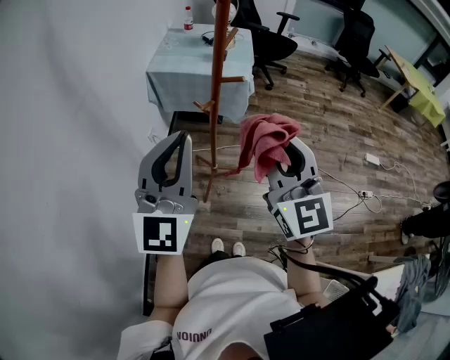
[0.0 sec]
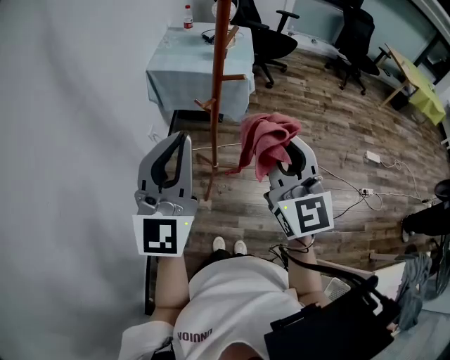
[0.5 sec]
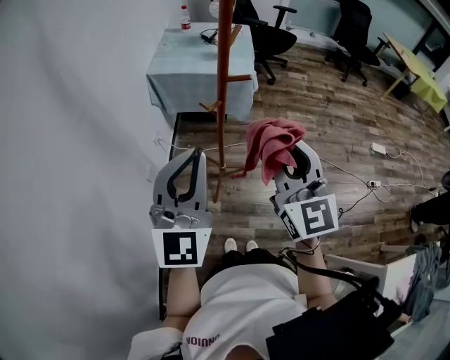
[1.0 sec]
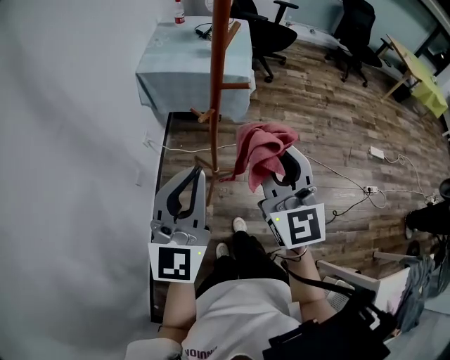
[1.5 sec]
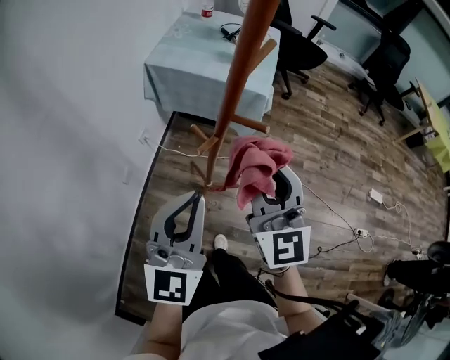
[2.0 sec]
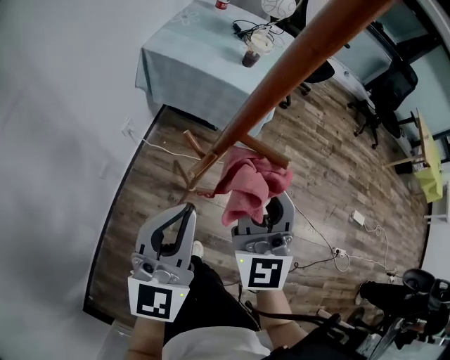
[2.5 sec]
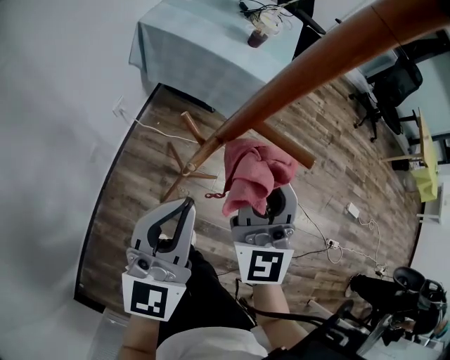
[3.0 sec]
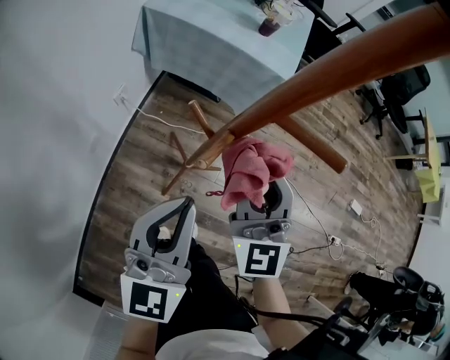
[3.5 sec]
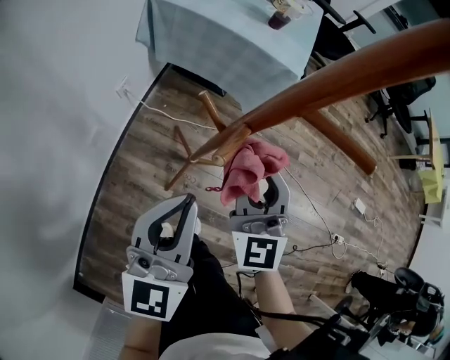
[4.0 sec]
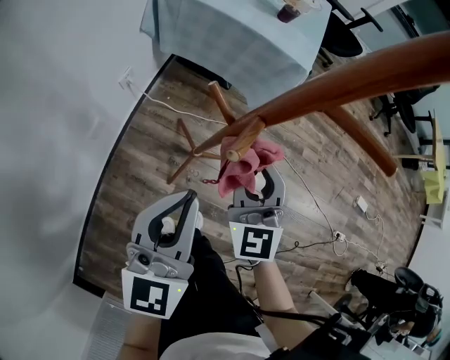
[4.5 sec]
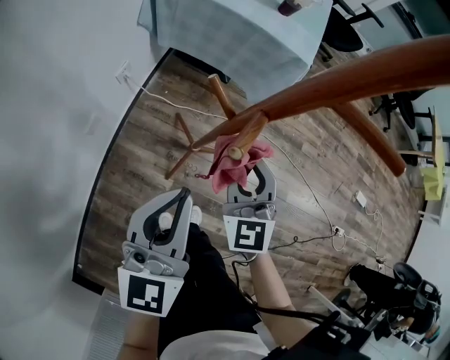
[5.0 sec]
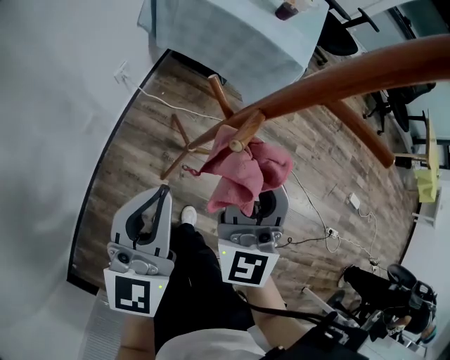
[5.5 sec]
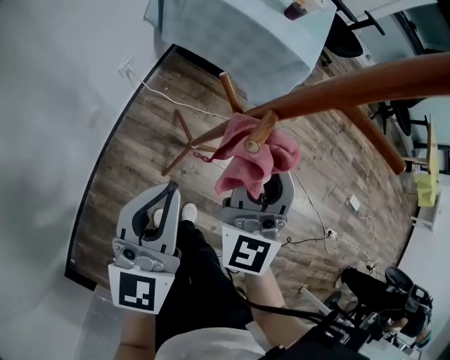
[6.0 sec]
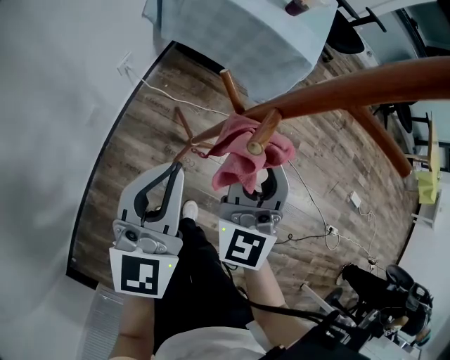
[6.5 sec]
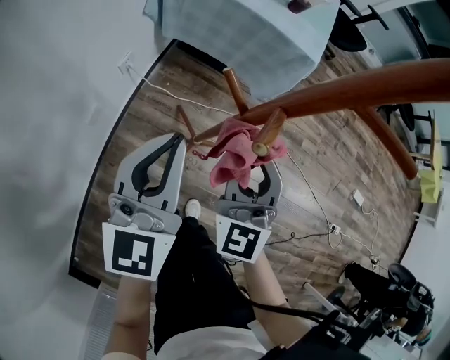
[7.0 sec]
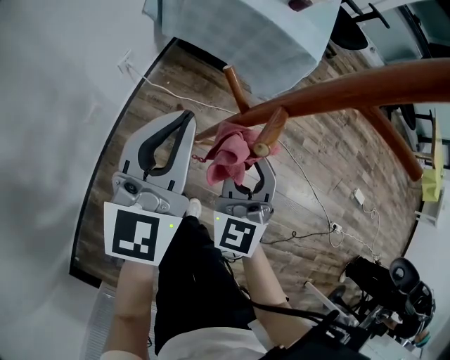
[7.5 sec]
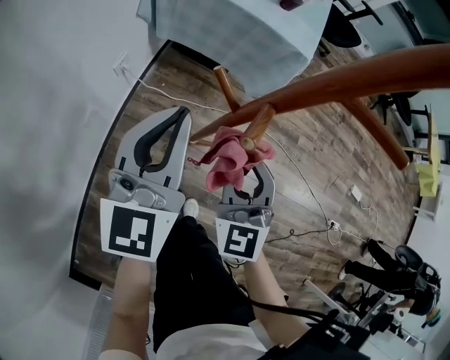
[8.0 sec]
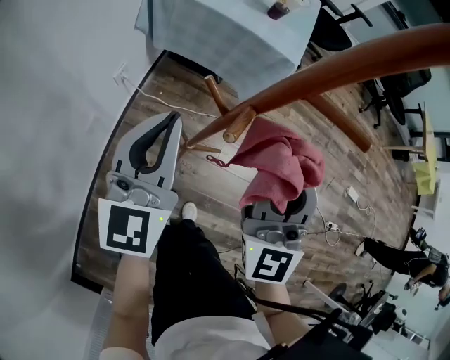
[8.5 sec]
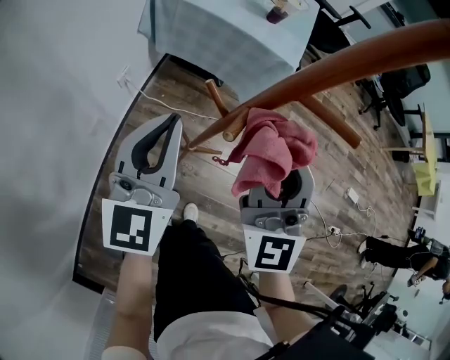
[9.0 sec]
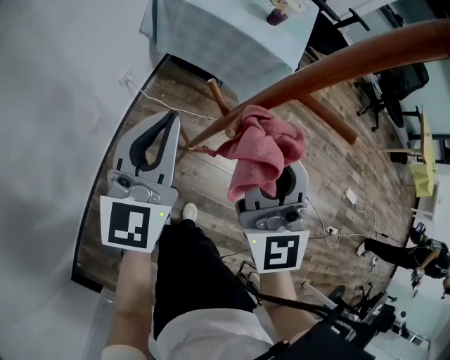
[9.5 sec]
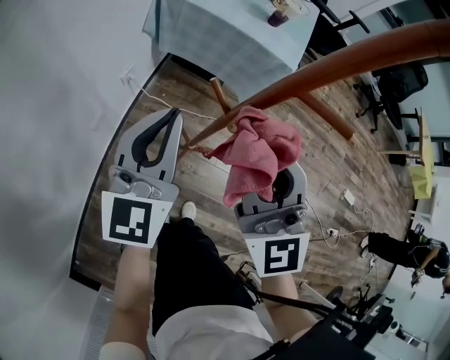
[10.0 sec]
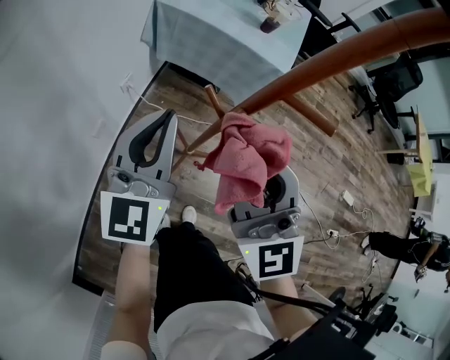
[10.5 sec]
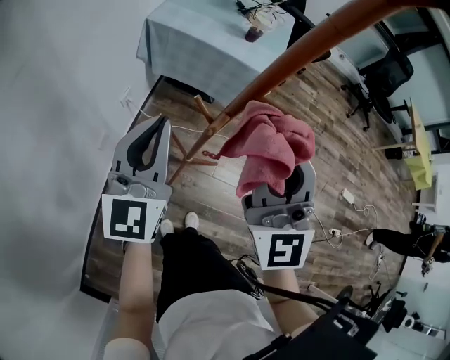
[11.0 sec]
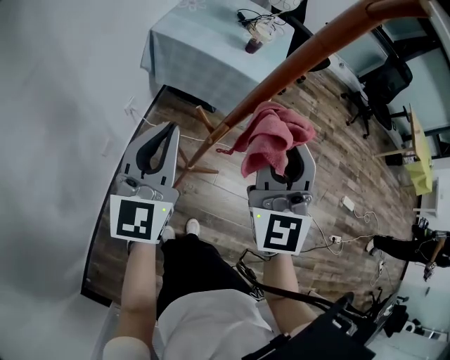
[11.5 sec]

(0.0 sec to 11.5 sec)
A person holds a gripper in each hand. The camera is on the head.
0.0 sec - 2.0 sec: The left gripper moves downward and forward, approximately 15 cm. Meanwhile the right gripper travels forward and downward by some 20 cm.
2.0 sec - 4.0 sec: The two grippers go some 15 cm downward.
4.0 sec - 6.0 sec: The right gripper moves roughly 5 cm downward and comes back.
6.0 sec - 7.5 sec: The right gripper travels downward by some 10 cm, and swivels approximately 20 degrees; the left gripper moves forward, roughly 10 cm.
7.5 sec - 9.5 sec: The right gripper is displaced upward by roughly 20 cm, and rotates some 30 degrees, while the left gripper heads upward, covering roughly 5 cm.
9.5 sec - 11.5 sec: The left gripper shifts approximately 10 cm upward, while the right gripper moves upward and to the right, approximately 10 cm.

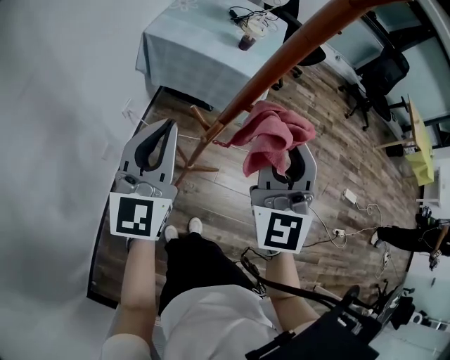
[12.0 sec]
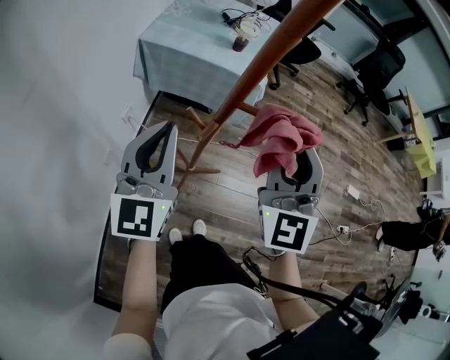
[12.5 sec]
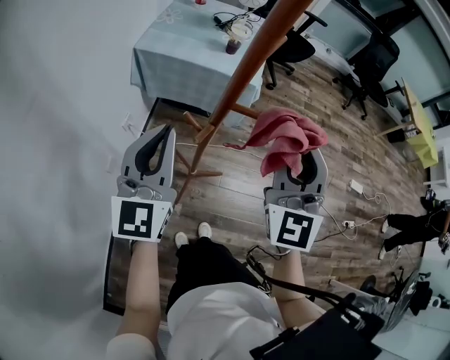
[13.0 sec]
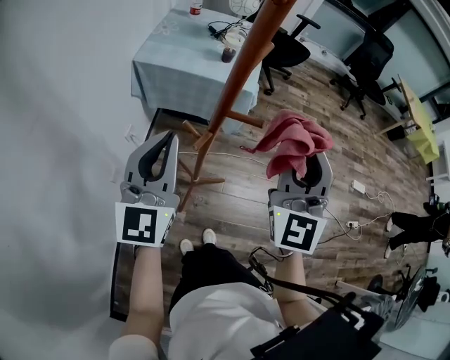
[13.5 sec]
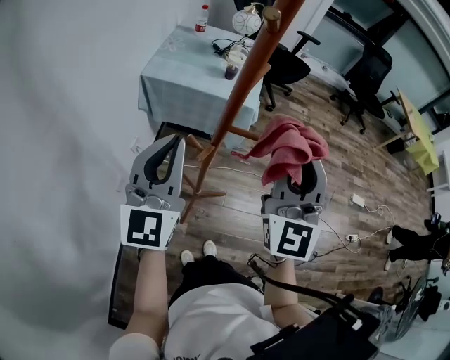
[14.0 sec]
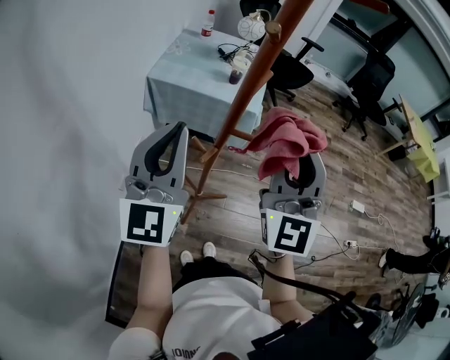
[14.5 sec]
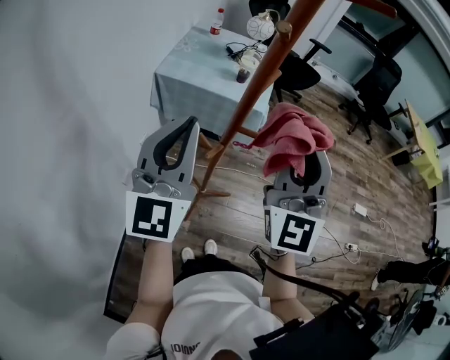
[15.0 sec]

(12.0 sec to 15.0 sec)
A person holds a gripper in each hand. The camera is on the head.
12.0 sec - 13.5 sec: The right gripper moves to the right, roughly 5 cm.
13.5 sec - 15.0 sec: The grippers both shift upward by roughly 10 cm.

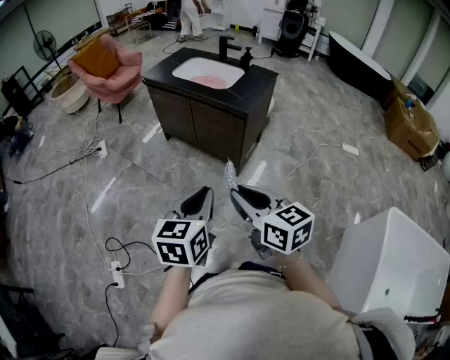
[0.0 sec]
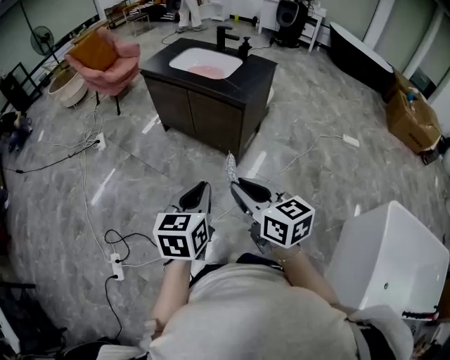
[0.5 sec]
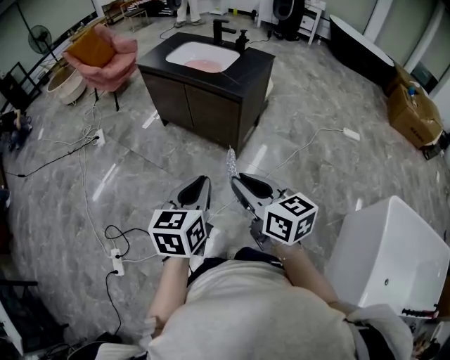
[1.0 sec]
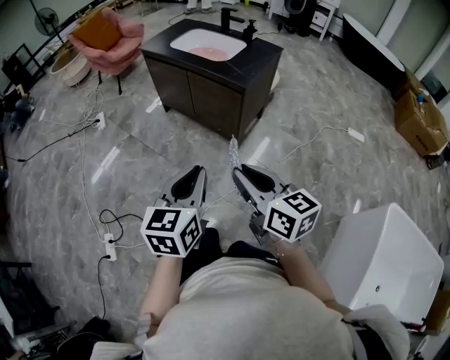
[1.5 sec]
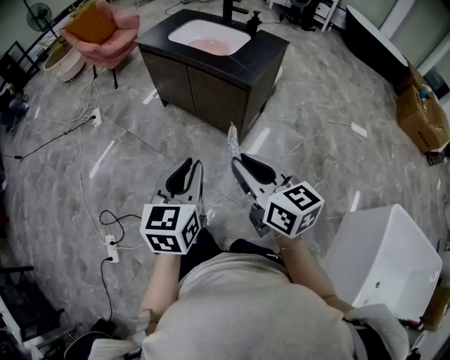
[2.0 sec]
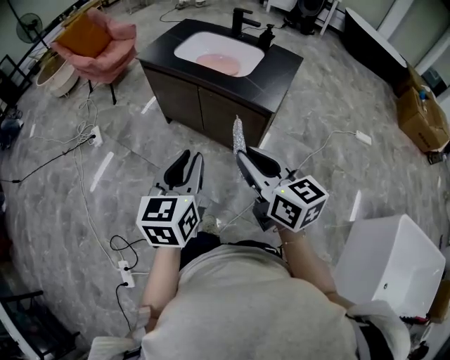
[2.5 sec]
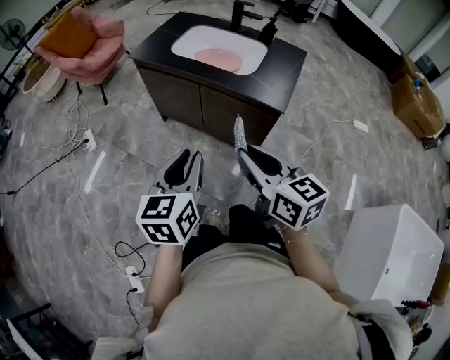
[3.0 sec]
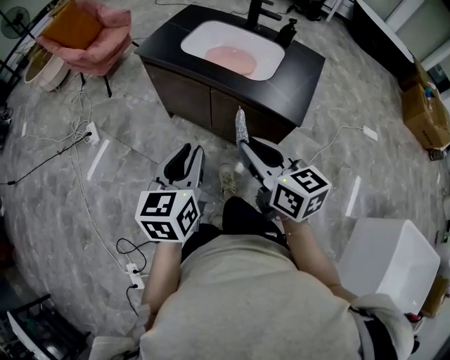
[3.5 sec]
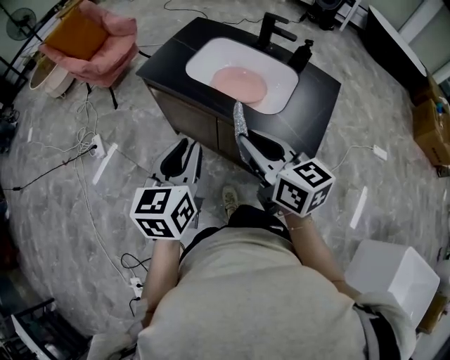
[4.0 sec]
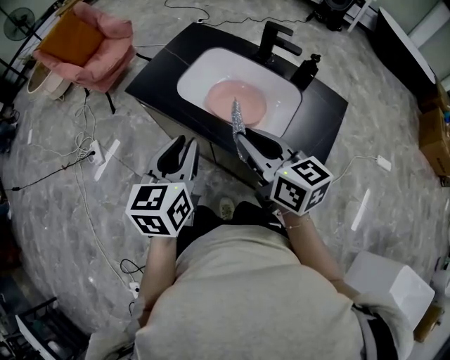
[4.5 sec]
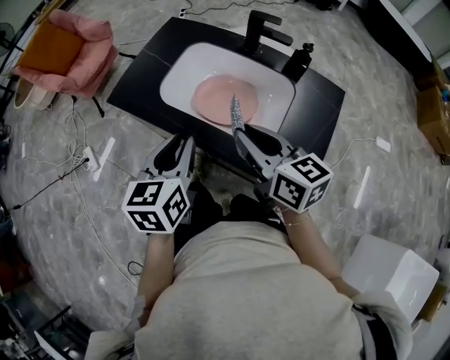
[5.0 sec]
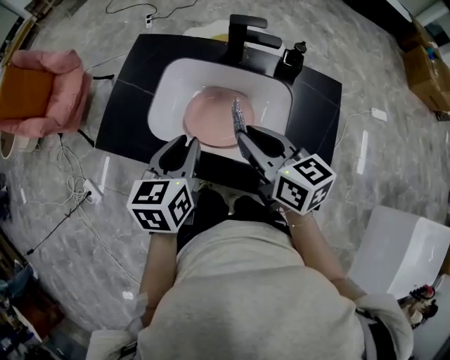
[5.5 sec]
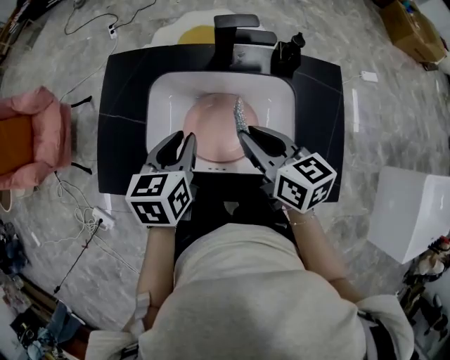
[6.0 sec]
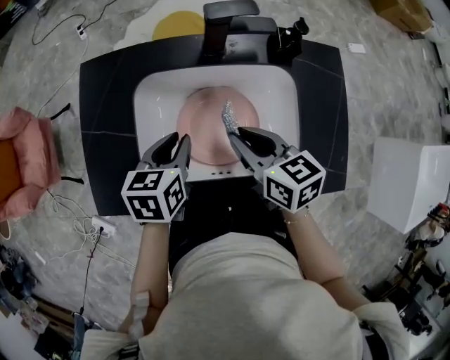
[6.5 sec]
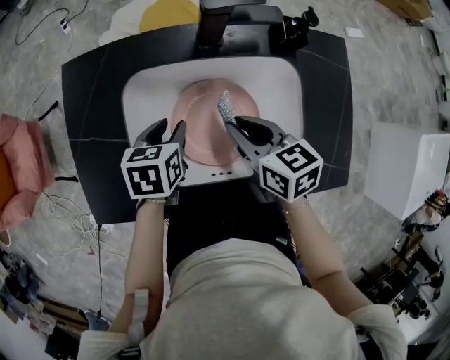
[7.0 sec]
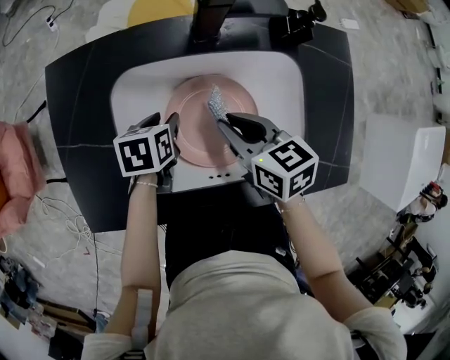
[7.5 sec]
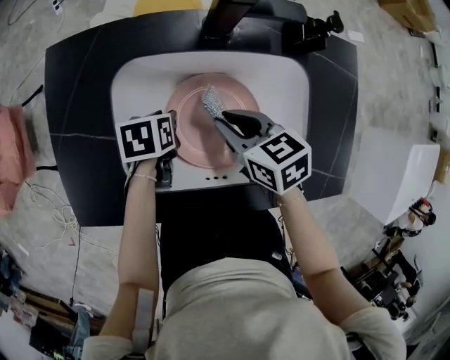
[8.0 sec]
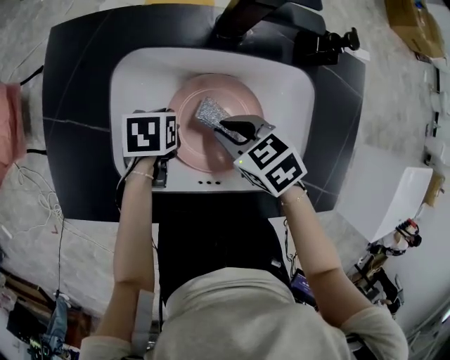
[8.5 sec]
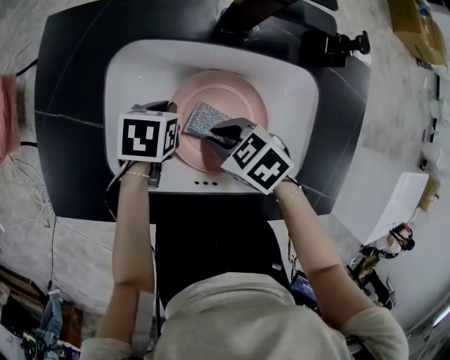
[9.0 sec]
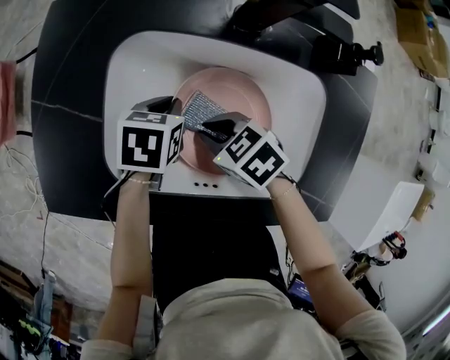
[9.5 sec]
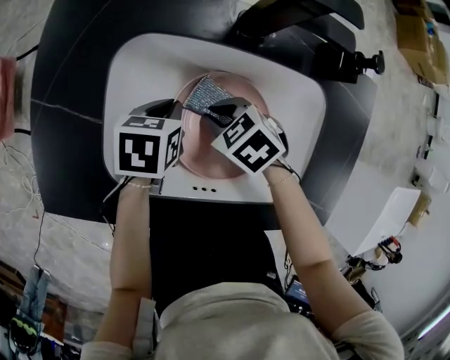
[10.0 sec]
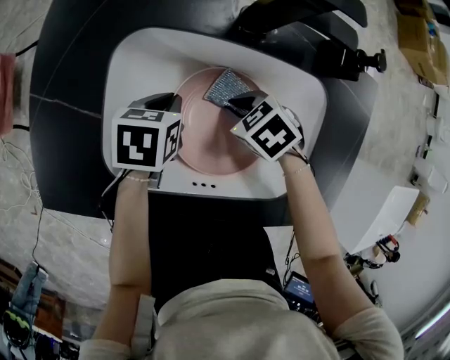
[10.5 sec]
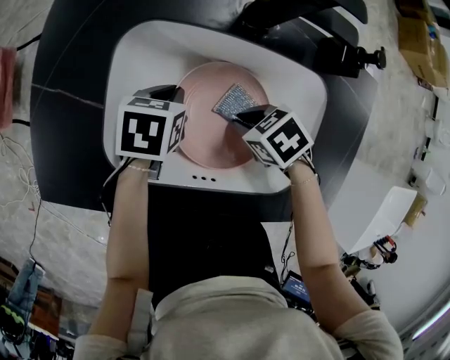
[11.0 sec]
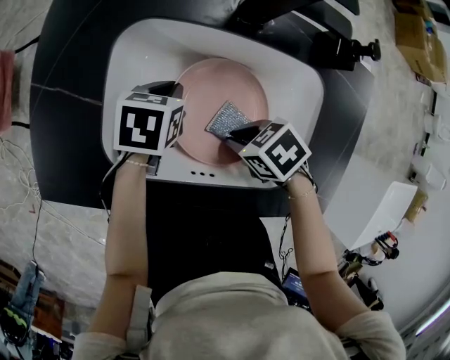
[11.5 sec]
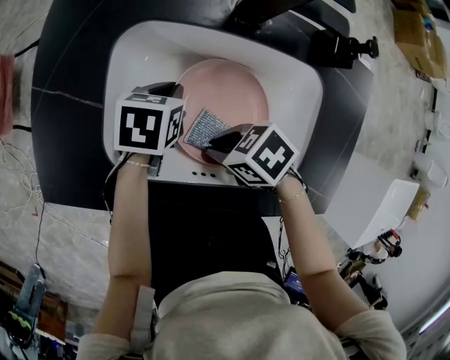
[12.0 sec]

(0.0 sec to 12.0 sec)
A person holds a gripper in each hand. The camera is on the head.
0.0 sec - 2.0 sec: The grippers both shift forward by approximately 5 cm.
2.0 sec - 4.0 sec: Both grippers are carried forward, roughly 50 cm.
4.0 sec - 6.0 sec: The left gripper moves roughly 40 cm, and turns by about 40 degrees; the right gripper ends up some 35 cm from where it was, and turns by some 30 degrees.
6.0 sec - 8.0 sec: The right gripper is displaced downward and forward by roughly 15 cm, and rotates some 20 degrees; the left gripper moves downward, approximately 25 cm, and rotates about 40 degrees.
8.0 sec - 10.0 sec: The left gripper closes its fingers, while the right gripper heads downward, covering some 10 cm, and rotates some 40 degrees.
10.0 sec - 12.0 sec: The right gripper shifts by about 10 cm, and changes its angle by some 20 degrees.
